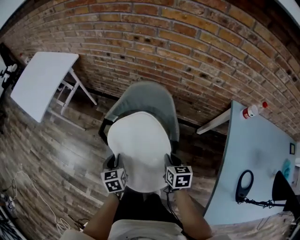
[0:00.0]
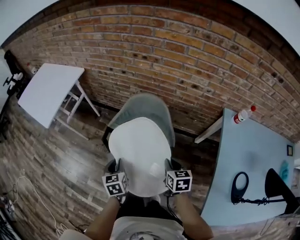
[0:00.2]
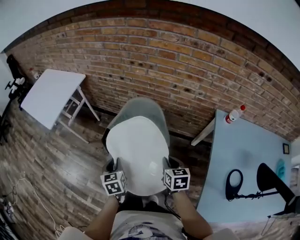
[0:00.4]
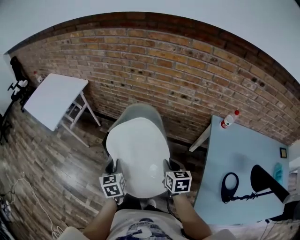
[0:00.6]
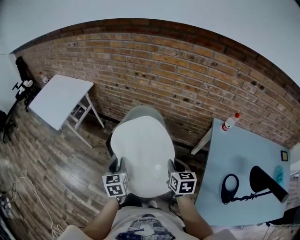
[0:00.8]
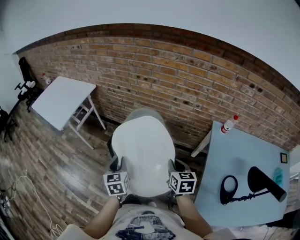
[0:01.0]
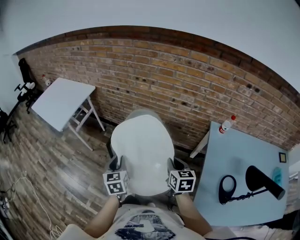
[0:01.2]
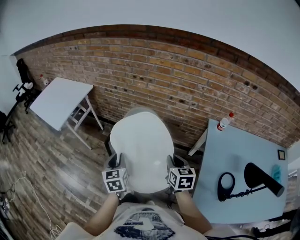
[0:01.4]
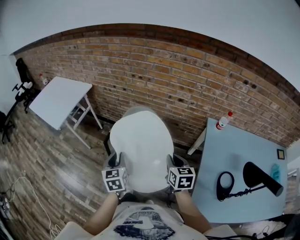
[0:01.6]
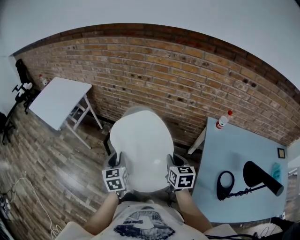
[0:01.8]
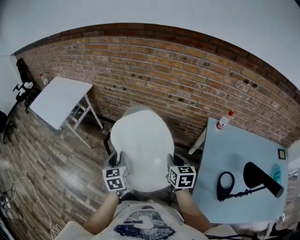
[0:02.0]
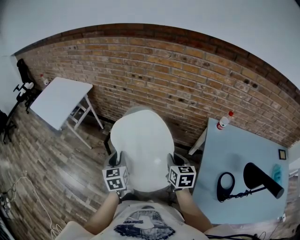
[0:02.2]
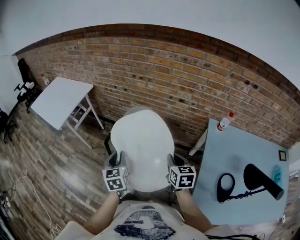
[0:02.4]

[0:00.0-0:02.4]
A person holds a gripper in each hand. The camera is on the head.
0:00.0 to 0:01.2: The right gripper moves upward and backward, about 25 cm; the left gripper is displaced upward by roughly 25 cm.
0:01.2 to 0:02.4: The grippers stay close to where they were, moving slightly.

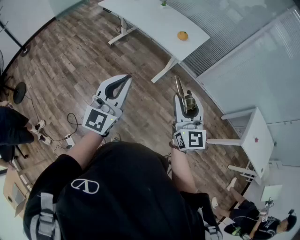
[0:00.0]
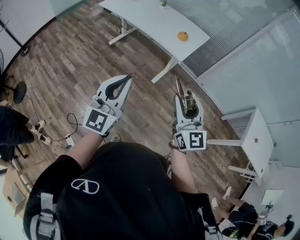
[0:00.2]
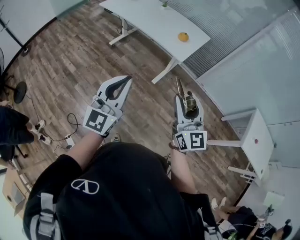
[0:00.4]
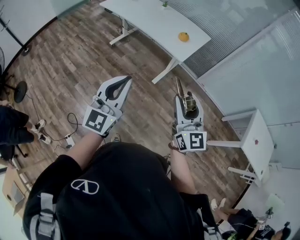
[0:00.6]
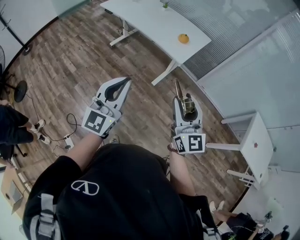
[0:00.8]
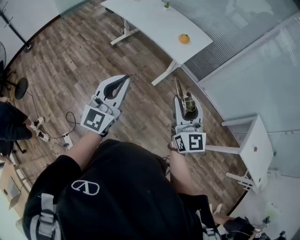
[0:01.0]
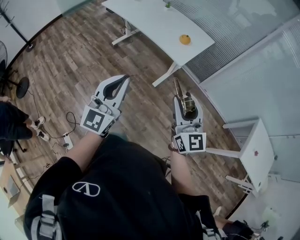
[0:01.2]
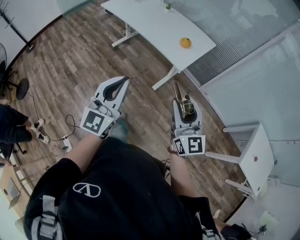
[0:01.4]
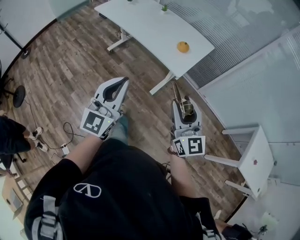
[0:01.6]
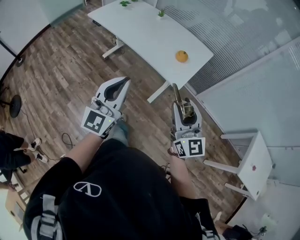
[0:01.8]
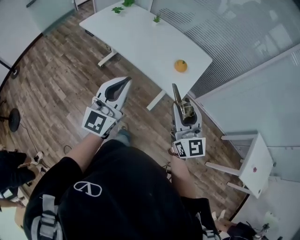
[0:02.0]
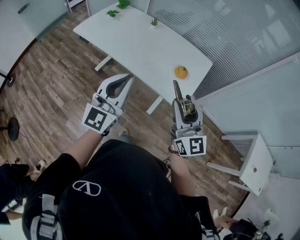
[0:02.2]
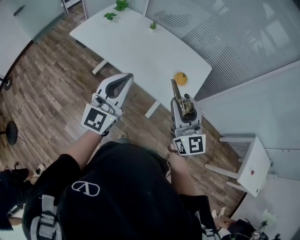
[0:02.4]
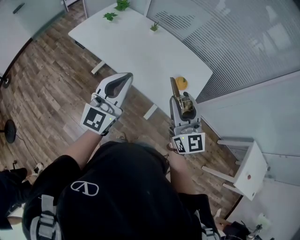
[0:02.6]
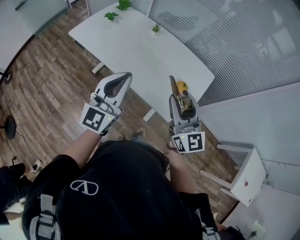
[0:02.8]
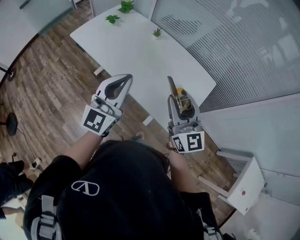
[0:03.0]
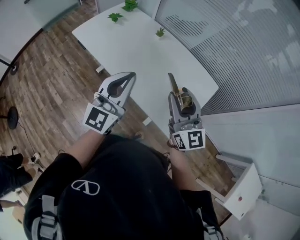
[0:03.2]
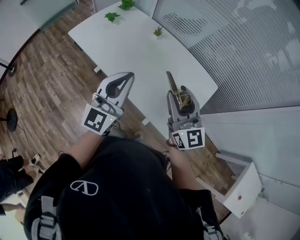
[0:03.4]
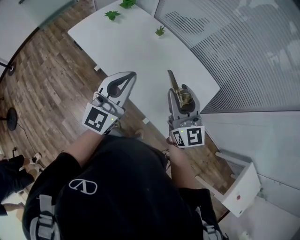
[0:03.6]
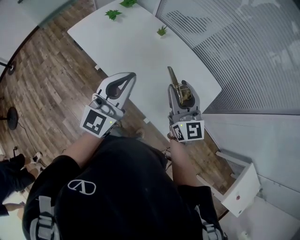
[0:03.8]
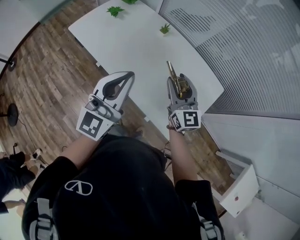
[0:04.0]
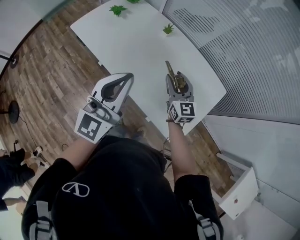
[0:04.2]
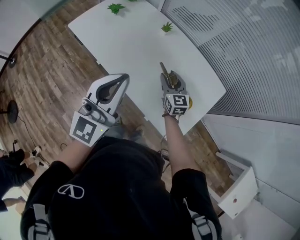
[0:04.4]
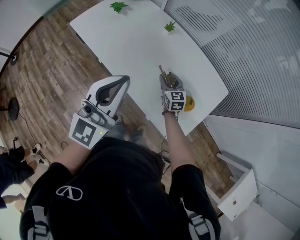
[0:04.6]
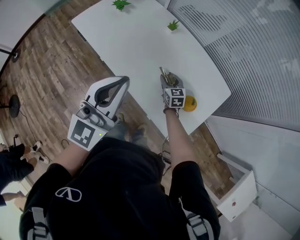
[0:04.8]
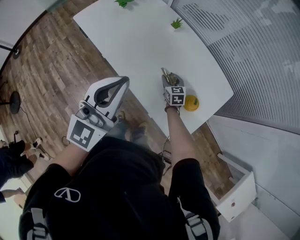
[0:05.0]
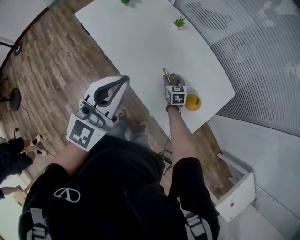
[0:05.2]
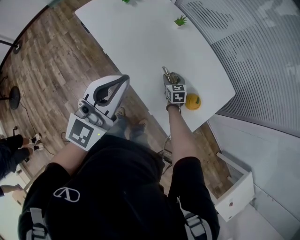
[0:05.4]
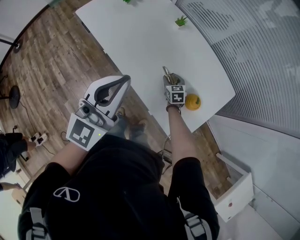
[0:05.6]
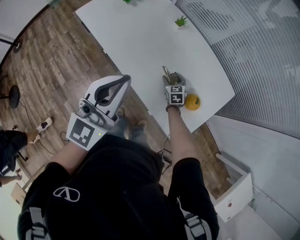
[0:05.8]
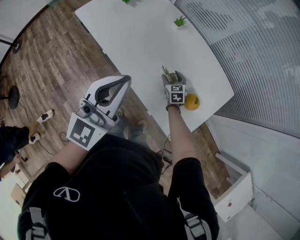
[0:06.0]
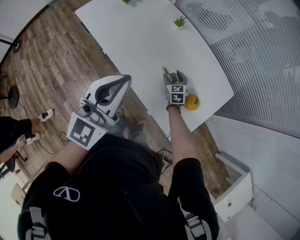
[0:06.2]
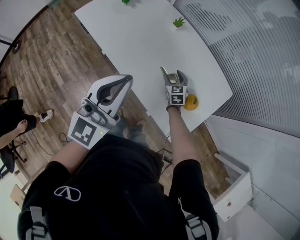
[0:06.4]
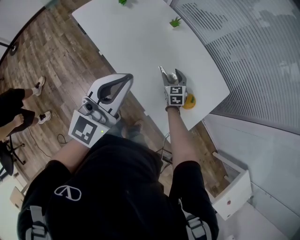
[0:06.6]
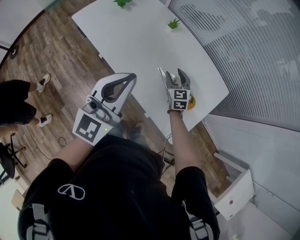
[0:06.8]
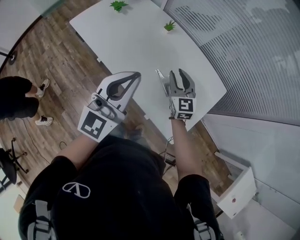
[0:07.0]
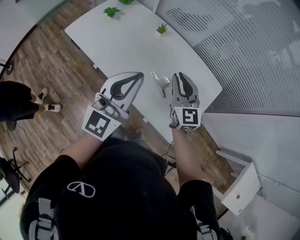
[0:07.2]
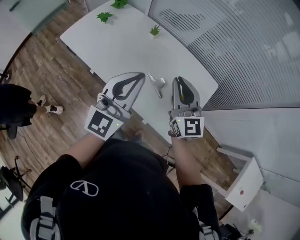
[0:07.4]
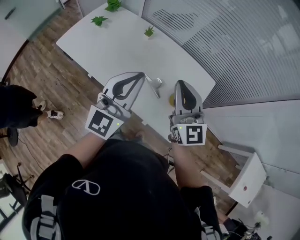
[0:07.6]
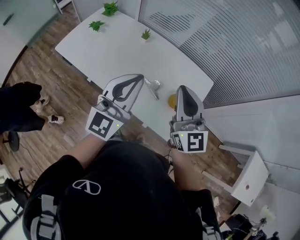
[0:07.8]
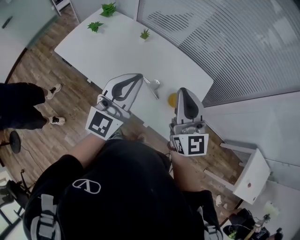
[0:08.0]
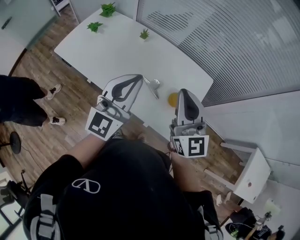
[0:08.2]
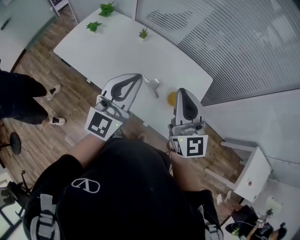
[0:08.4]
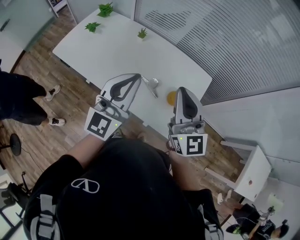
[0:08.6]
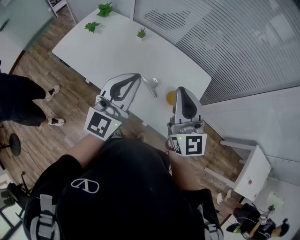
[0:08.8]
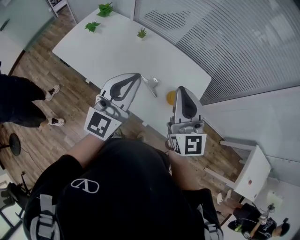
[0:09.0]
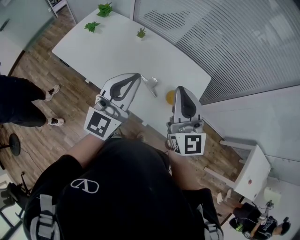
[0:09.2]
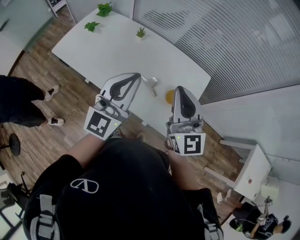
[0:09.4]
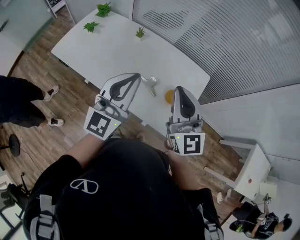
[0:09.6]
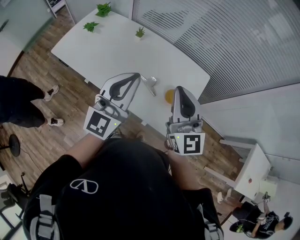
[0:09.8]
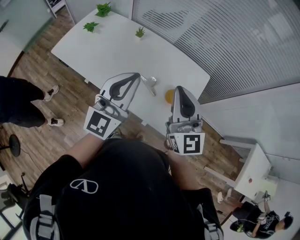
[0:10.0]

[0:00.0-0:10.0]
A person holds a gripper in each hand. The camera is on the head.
0:00.0 to 0:01.4: Both grippers move forward and to the right, about 10 cm.
0:01.4 to 0:02.8: Both grippers are carried forward, approximately 50 cm.
0:02.8 to 0:04.2: The right gripper shifts some 30 cm forward and downward. Meanwhile the left gripper moves forward, roughly 10 cm.
0:04.2 to 0:05.8: The right gripper shifts approximately 25 cm downward, and tips its fingers downward by some 30 degrees.
0:05.8 to 0:07.2: The left gripper changes place by roughly 5 cm; the right gripper goes roughly 30 cm upward, points its fingers roughly 40 degrees further upward, and closes up.
0:07.2 to 0:08.6: The left gripper shifts by approximately 5 cm. Meanwhile the right gripper shifts roughly 15 cm upward and backward.
0:08.6 to 0:10.0: Both grippers stay put.

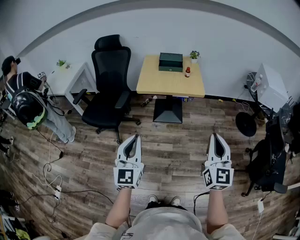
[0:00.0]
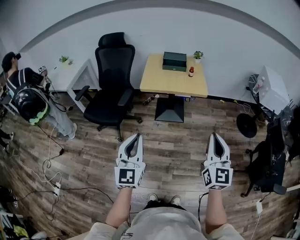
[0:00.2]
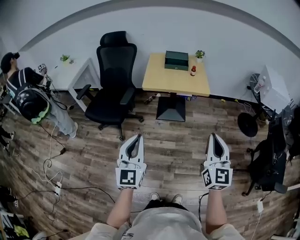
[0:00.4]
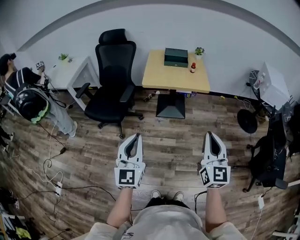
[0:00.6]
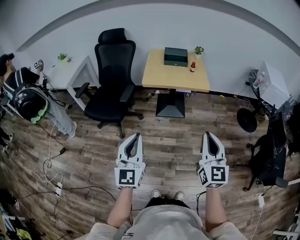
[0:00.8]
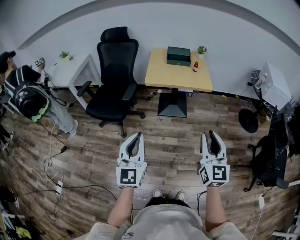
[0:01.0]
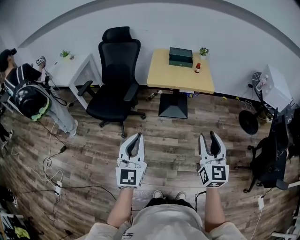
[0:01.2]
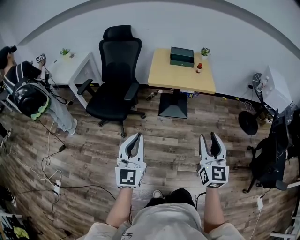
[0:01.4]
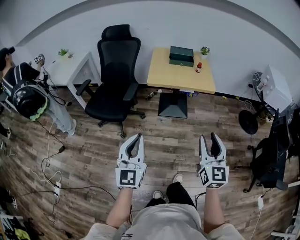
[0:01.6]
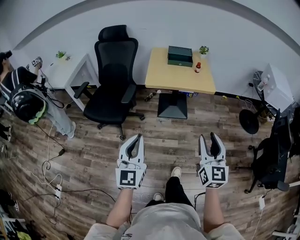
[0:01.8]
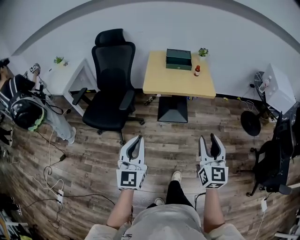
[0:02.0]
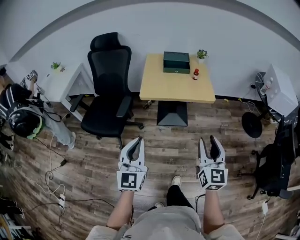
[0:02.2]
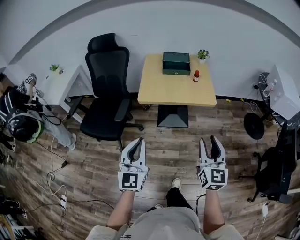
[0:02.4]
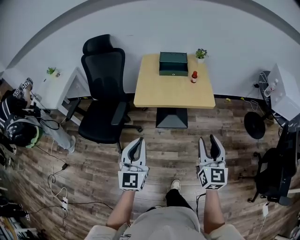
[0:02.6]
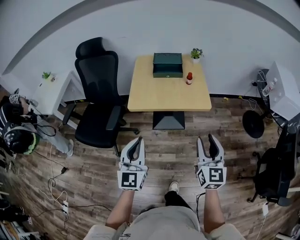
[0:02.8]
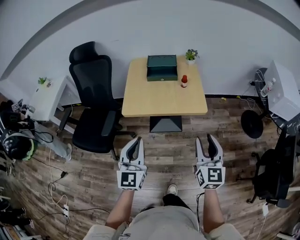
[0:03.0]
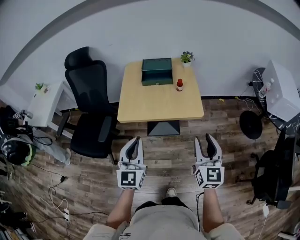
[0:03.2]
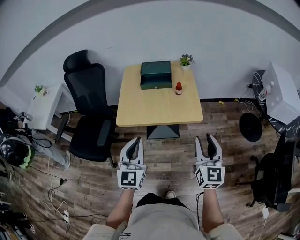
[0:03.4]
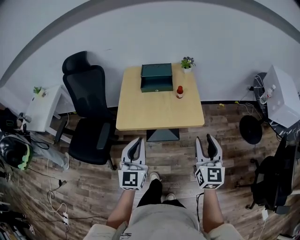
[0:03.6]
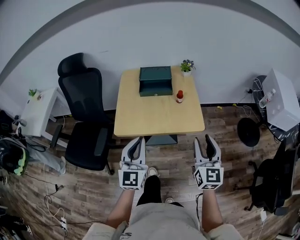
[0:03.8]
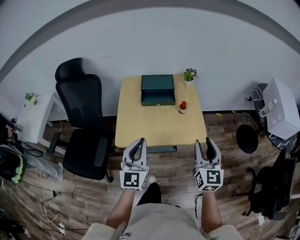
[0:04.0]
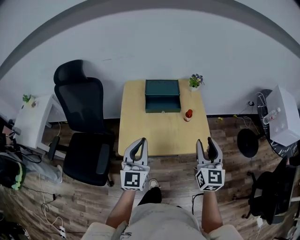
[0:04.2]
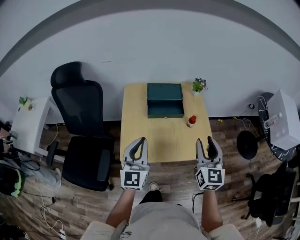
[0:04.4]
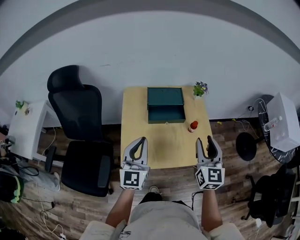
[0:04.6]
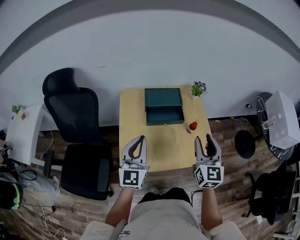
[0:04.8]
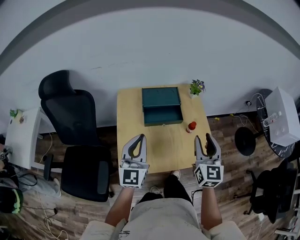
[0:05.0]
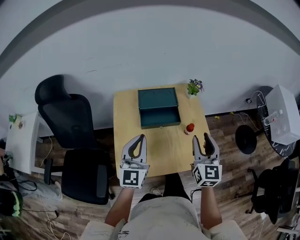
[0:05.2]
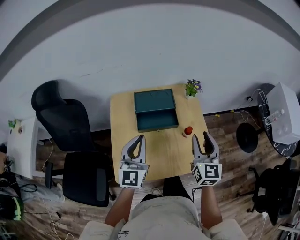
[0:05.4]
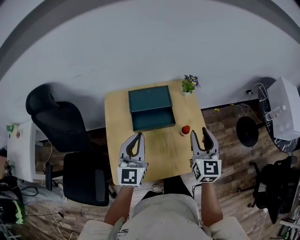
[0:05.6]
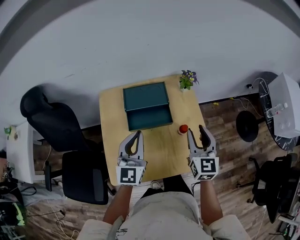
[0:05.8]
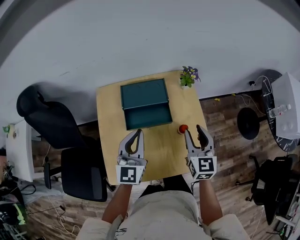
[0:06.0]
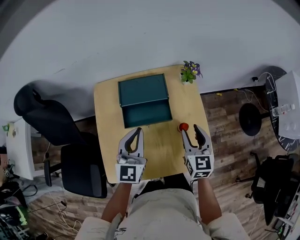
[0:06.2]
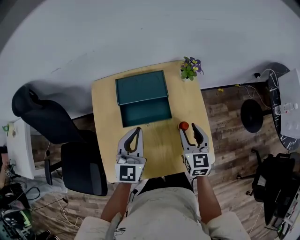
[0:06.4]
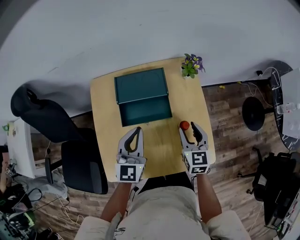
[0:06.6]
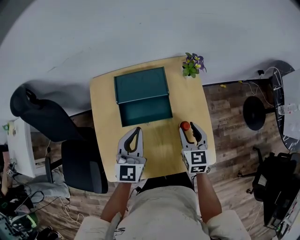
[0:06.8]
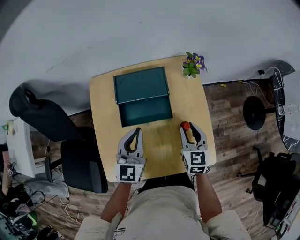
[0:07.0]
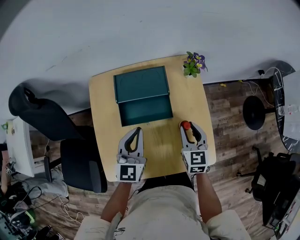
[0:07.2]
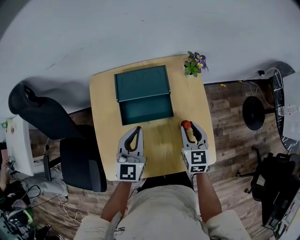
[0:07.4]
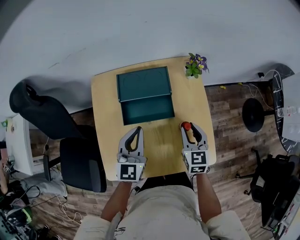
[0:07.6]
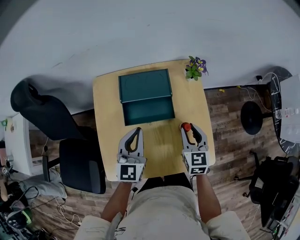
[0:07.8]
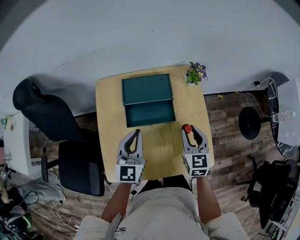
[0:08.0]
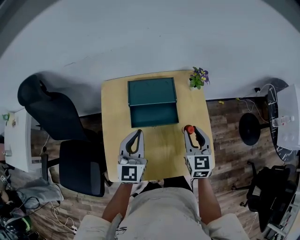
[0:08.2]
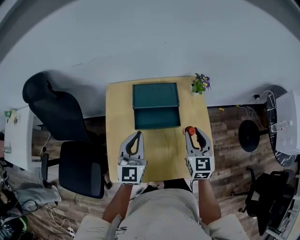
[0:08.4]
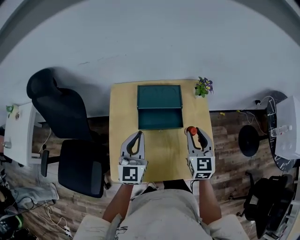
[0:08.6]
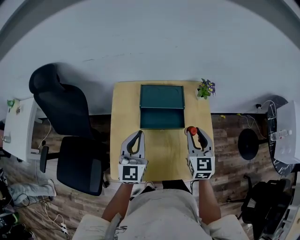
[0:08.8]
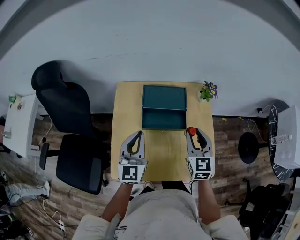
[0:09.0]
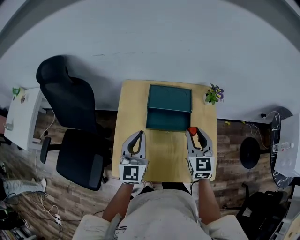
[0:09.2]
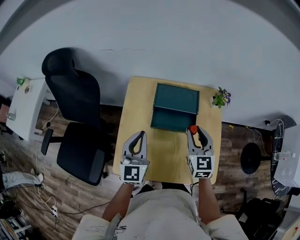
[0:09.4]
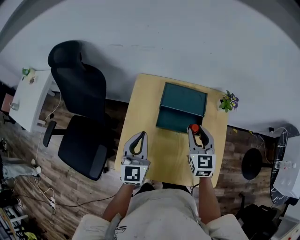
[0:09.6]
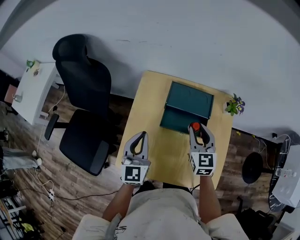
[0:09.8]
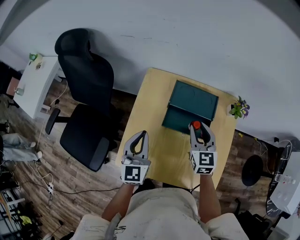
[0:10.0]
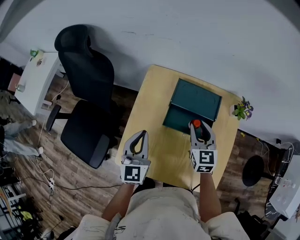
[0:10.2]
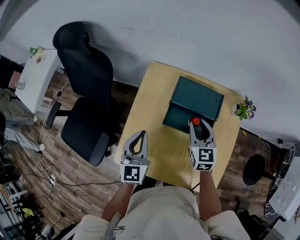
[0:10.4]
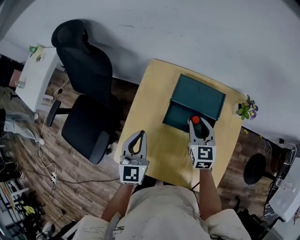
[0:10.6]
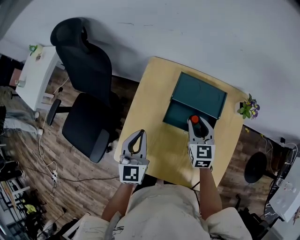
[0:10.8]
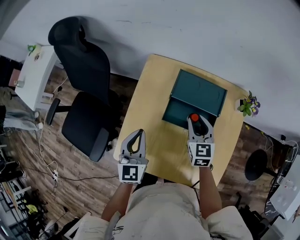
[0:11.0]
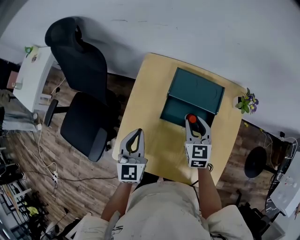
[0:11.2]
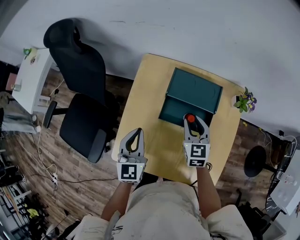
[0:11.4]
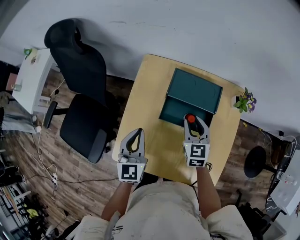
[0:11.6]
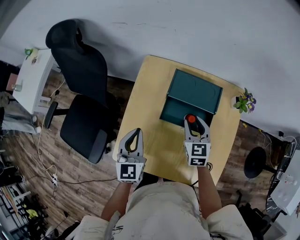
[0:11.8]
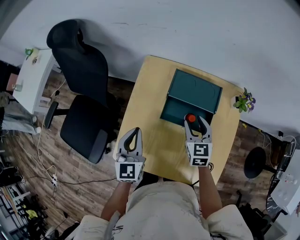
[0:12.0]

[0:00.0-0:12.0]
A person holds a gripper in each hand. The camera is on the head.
0:00.0 to 0:01.6: Both grippers move to the left, roughly 10 cm. The right gripper opens up.
0:01.6 to 0:03.0: The grippers both shift forward and to the right by approximately 35 cm.
0:03.0 to 0:04.4: Both grippers travel together forward, about 30 cm.
0:04.4 to 0:06.0: The right gripper goes some 20 cm forward and downward; the left gripper heads forward, covering about 20 cm.
0:06.0 to 0:07.6: The left gripper shifts some 5 cm downward, while the right gripper goes some 10 cm downward.
0:07.6 to 0:09.0: The left gripper travels to the left and upward by approximately 10 cm. The right gripper heads upward and to the left, covering some 10 cm.
0:09.0 to 0:10.4: The left gripper heads to the left and downward, covering roughly 10 cm, and swivels some 20 degrees; the right gripper is displaced forward, to the left and downward by roughly 15 cm.
0:10.4 to 0:12.0: The grippers stay close to where they were, moving slightly.
